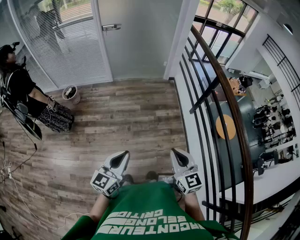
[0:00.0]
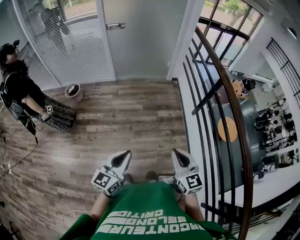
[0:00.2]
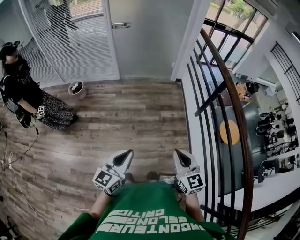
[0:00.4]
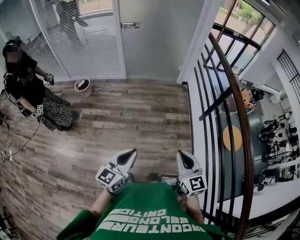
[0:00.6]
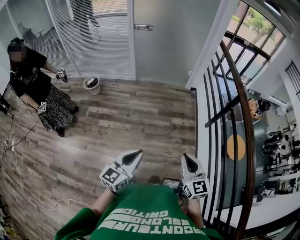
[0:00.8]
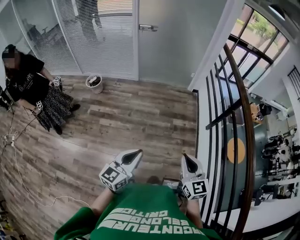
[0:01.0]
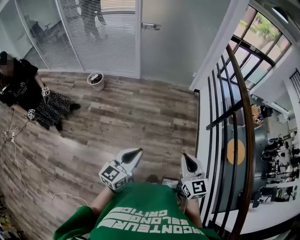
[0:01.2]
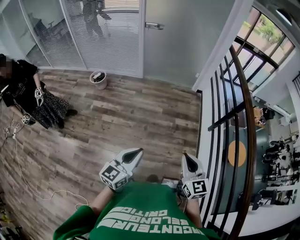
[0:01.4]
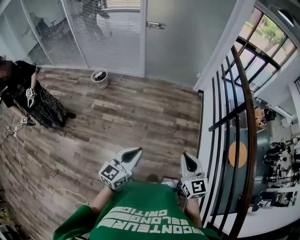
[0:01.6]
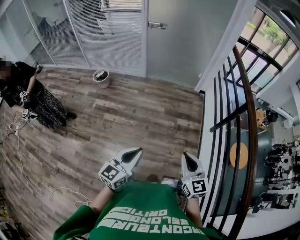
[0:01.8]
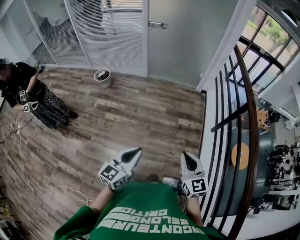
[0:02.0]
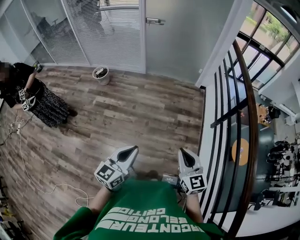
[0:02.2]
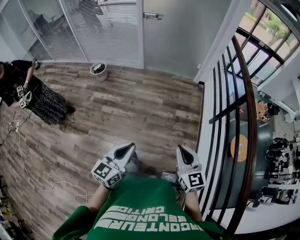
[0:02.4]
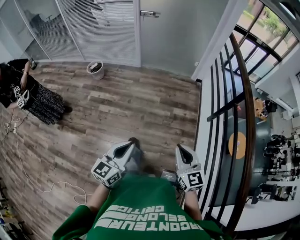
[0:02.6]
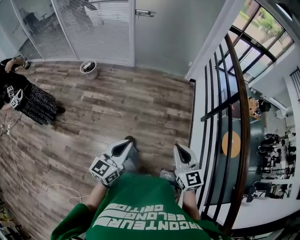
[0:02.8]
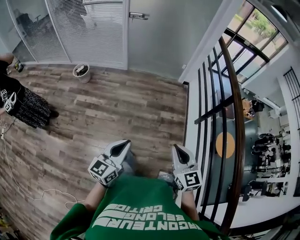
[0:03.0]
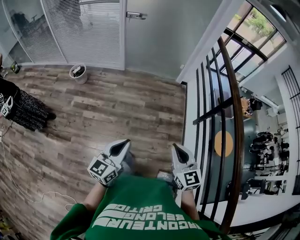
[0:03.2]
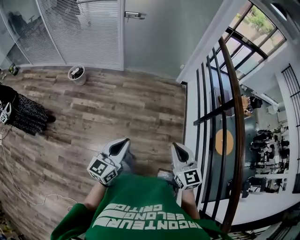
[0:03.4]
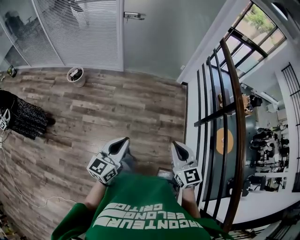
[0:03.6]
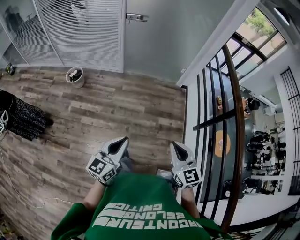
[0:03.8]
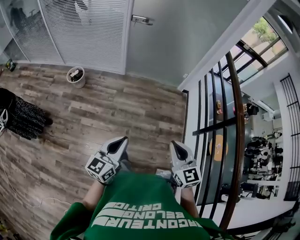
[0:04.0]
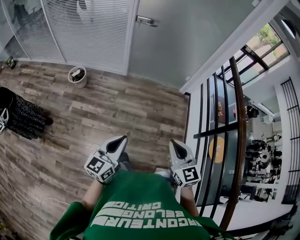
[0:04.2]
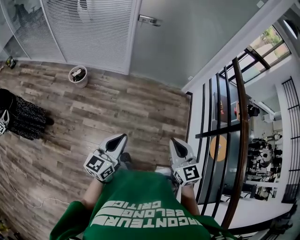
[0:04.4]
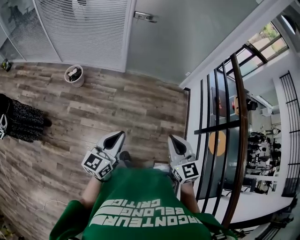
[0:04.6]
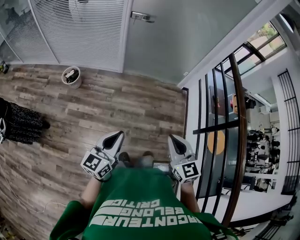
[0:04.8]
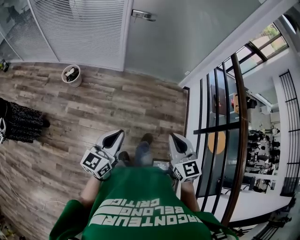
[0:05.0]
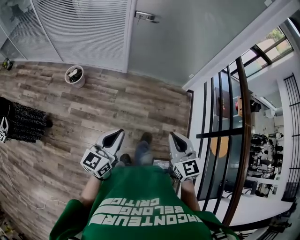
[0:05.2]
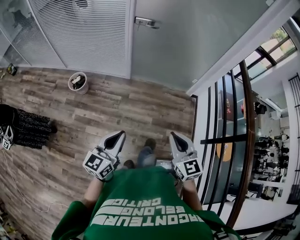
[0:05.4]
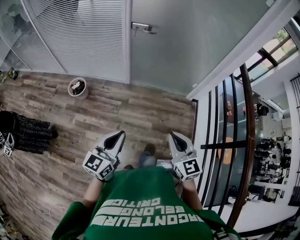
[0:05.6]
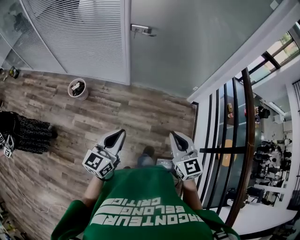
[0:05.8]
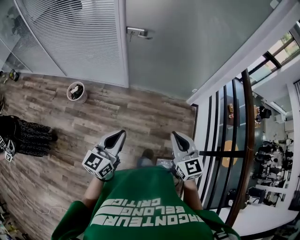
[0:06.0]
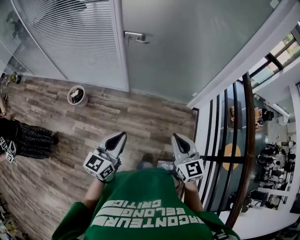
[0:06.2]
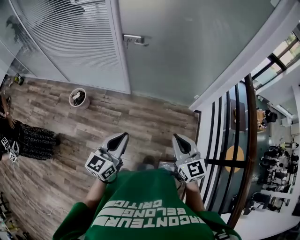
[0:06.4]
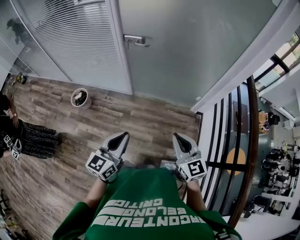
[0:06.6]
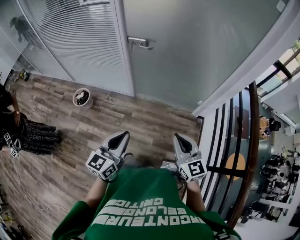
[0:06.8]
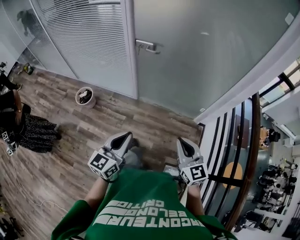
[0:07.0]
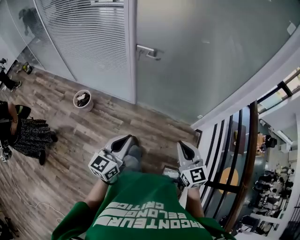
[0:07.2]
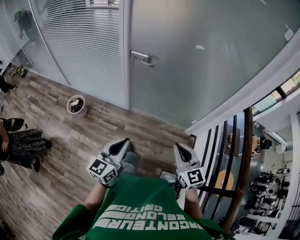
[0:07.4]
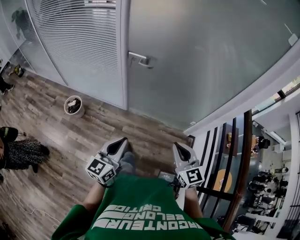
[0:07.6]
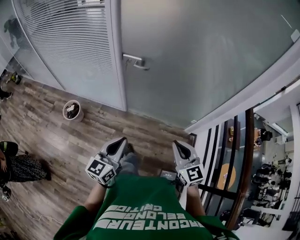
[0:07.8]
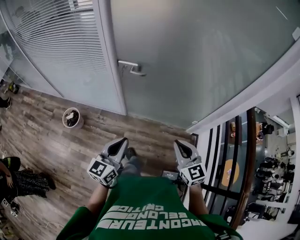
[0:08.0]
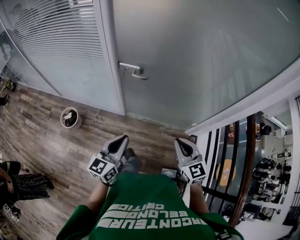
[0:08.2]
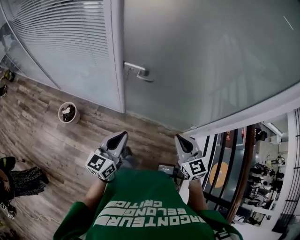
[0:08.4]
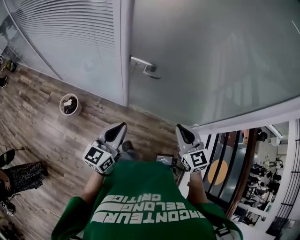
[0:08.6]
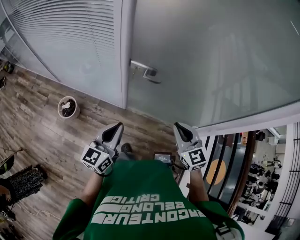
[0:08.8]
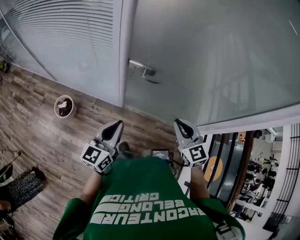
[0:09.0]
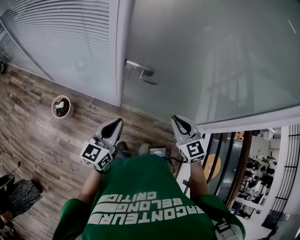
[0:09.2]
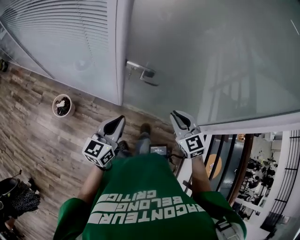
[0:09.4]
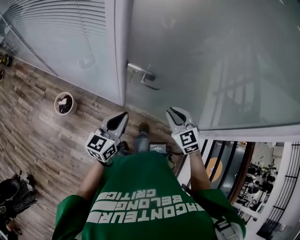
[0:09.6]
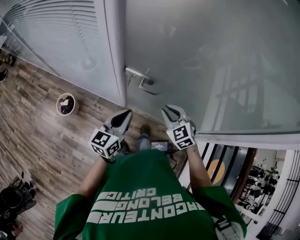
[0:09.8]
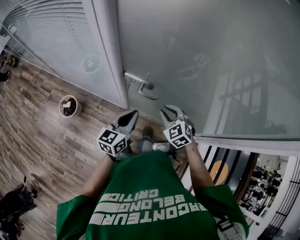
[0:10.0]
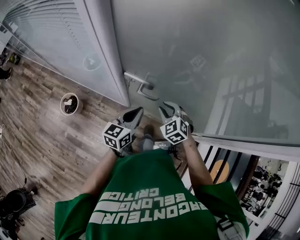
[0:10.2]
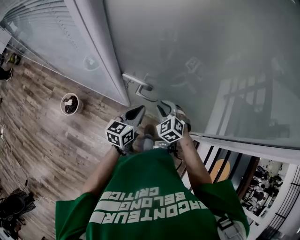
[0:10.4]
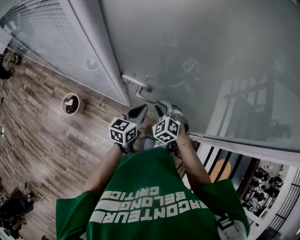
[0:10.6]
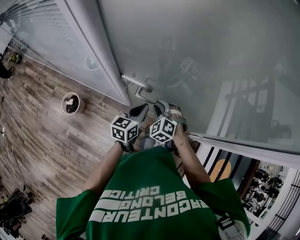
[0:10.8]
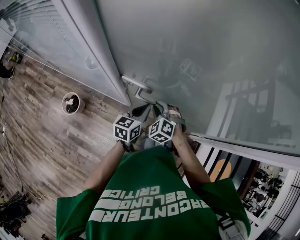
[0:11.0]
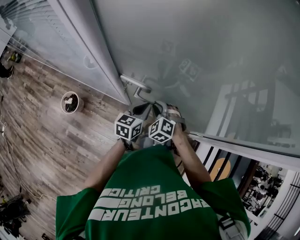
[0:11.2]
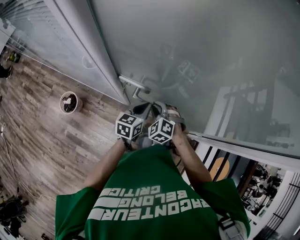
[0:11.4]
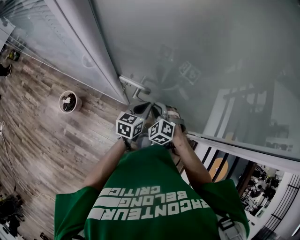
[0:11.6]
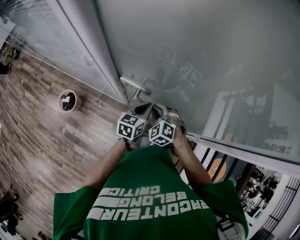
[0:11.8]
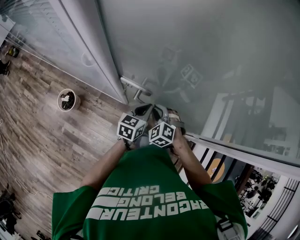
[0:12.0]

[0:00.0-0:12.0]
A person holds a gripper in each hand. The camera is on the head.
0:00.0 to 0:01.6: The grippers make only small movements.
0:01.6 to 0:03.0: The left gripper moves roughly 5 cm. Meanwhile the right gripper ends up about 5 cm from where it was.
0:03.0 to 0:04.4: The grippers both shift forward and to the left by approximately 25 cm.
0:04.4 to 0:06.0: The two grippers go approximately 25 cm forward.
0:06.0 to 0:07.6: The two grippers go about 15 cm forward.
0:07.6 to 0:09.0: Both grippers travel together forward, about 25 cm.
0:09.0 to 0:10.4: The left gripper shifts approximately 25 cm forward, to the right and downward. Meanwhile the right gripper is displaced forward and downward by some 25 cm, and turns by some 30 degrees.
0:10.4 to 0:12.0: The left gripper ends up approximately 10 cm from where it was.

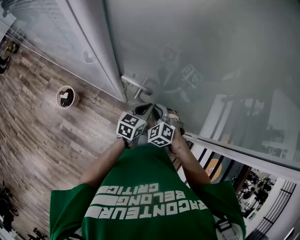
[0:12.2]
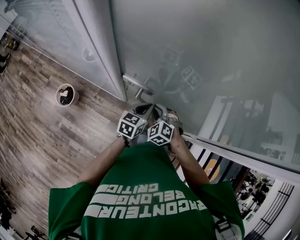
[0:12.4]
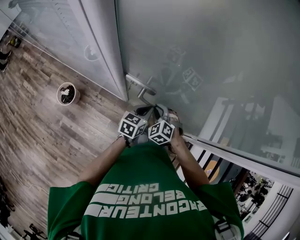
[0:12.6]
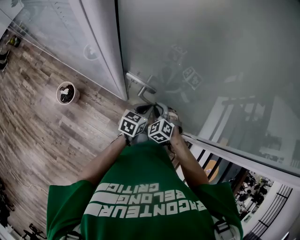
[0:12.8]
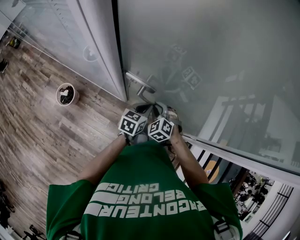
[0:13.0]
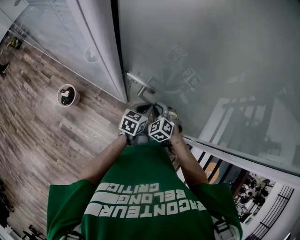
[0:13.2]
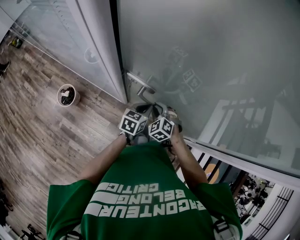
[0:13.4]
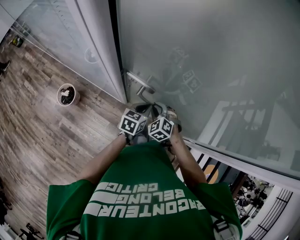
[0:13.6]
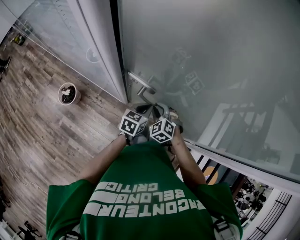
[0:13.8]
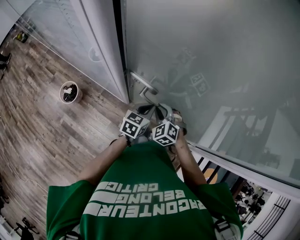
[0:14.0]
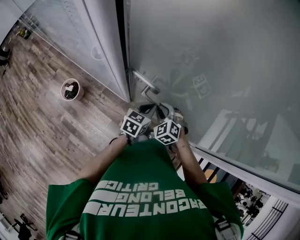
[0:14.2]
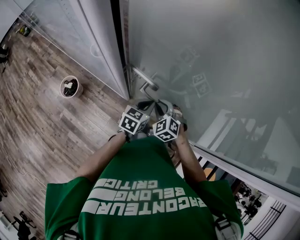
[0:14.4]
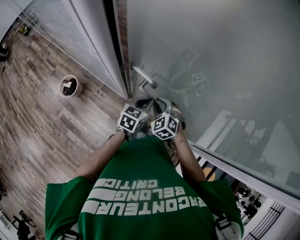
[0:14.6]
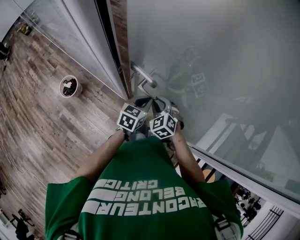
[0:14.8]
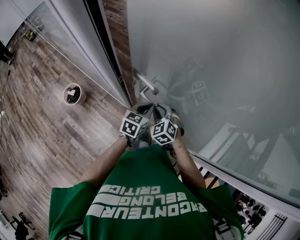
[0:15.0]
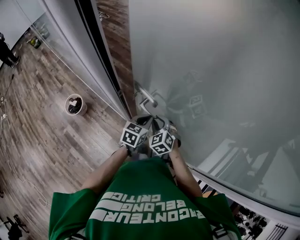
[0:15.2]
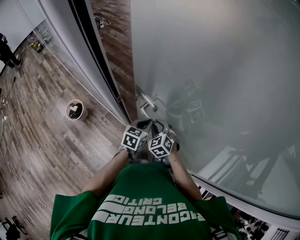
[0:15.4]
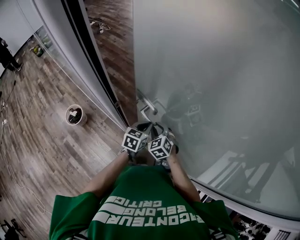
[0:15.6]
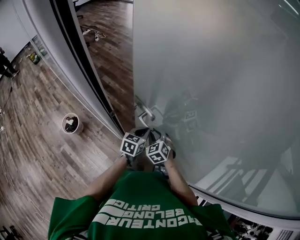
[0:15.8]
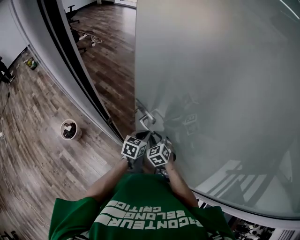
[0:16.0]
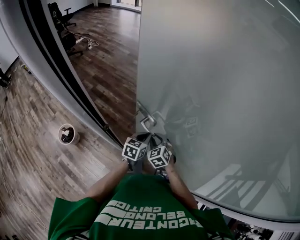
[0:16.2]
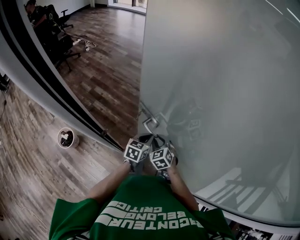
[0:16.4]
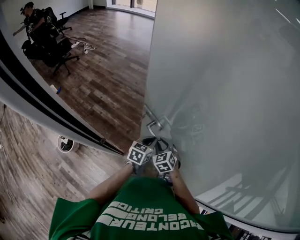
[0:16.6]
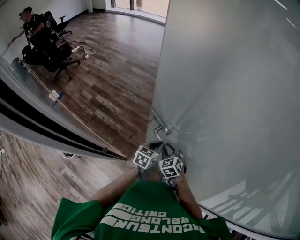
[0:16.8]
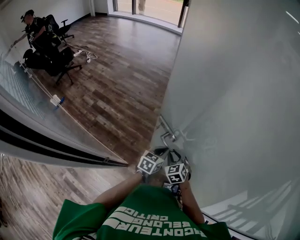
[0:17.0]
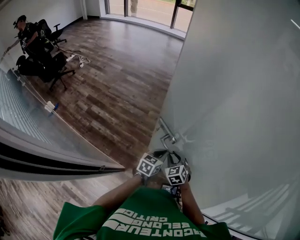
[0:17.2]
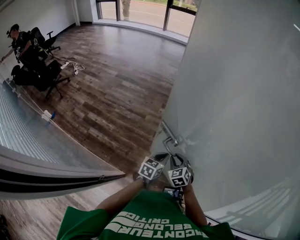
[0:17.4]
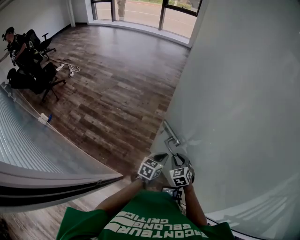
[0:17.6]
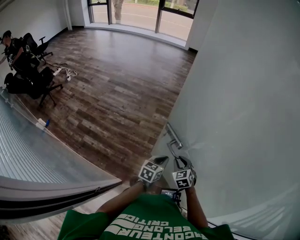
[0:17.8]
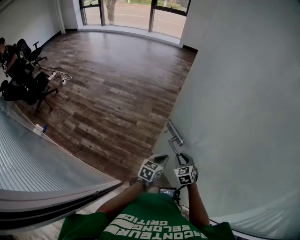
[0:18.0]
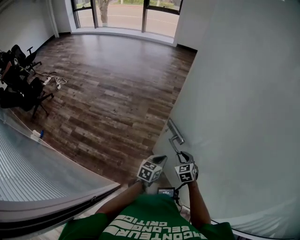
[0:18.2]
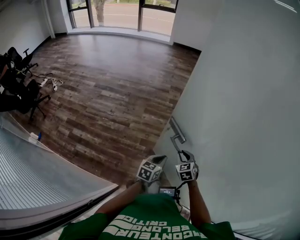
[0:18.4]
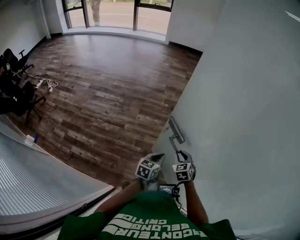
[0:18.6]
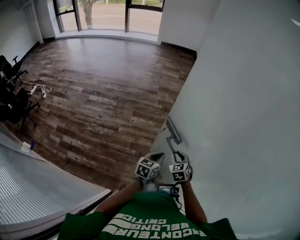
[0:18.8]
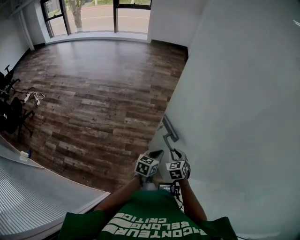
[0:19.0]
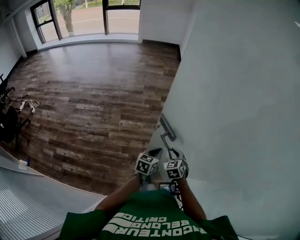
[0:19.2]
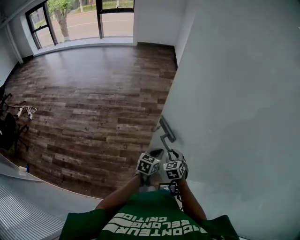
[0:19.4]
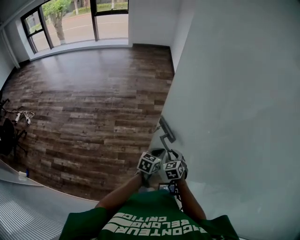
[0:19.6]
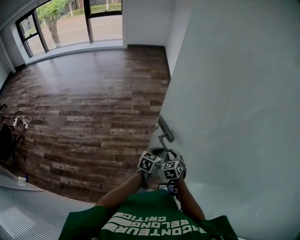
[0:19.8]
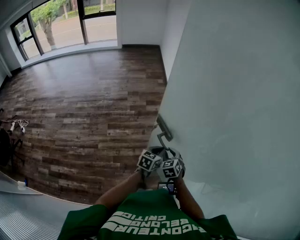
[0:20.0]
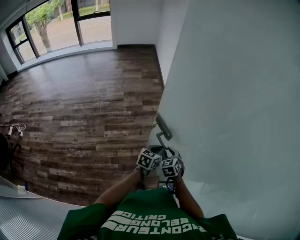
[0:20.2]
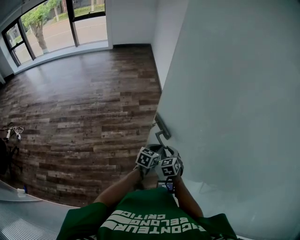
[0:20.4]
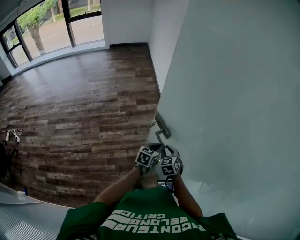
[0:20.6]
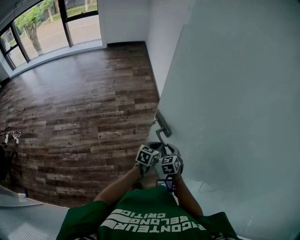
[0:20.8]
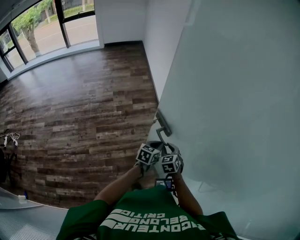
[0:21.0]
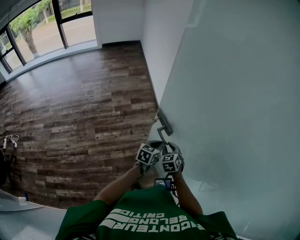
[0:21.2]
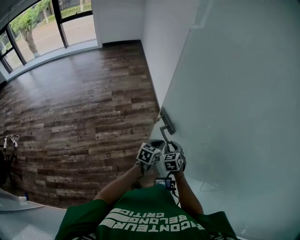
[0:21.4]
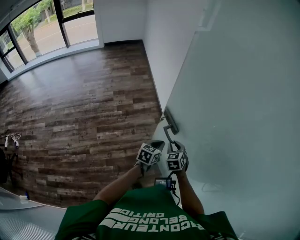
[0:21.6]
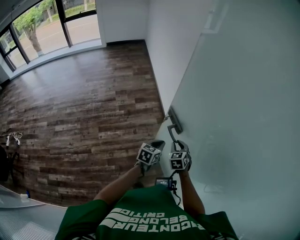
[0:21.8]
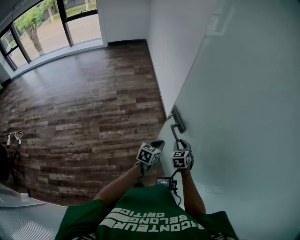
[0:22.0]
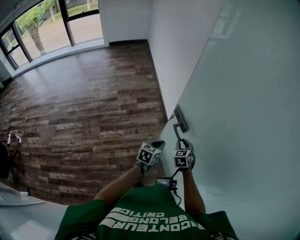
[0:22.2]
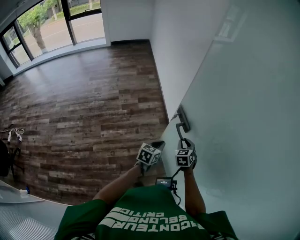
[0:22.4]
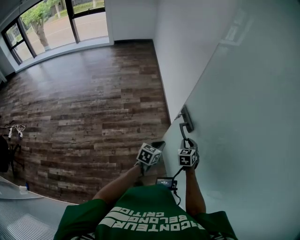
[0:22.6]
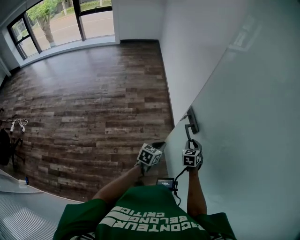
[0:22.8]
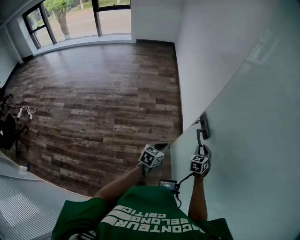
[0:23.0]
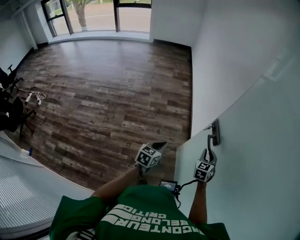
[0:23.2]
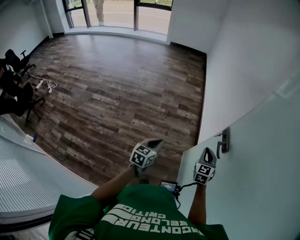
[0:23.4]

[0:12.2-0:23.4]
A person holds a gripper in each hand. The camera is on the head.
0:12.2 to 0:13.8: The grippers make only small movements.
0:13.8 to 0:15.4: The grippers both shift forward by some 5 cm.
0:15.4 to 0:17.0: The two grippers go some 20 cm forward and to the right.
0:17.0 to 0:18.6: The grippers both shift forward and to the right by roughly 25 cm. The right gripper swivels approximately 20 degrees.
0:18.6 to 0:20.2: Both grippers move forward and to the right, approximately 25 cm. The left gripper swivels approximately 20 degrees.
0:20.2 to 0:21.8: The right gripper shifts some 15 cm forward and to the right. The left gripper goes about 5 cm forward.
0:21.8 to 0:23.4: The left gripper goes about 25 cm to the left and backward, and rotates approximately 30 degrees, while the right gripper is displaced upward and to the left by roughly 15 cm.

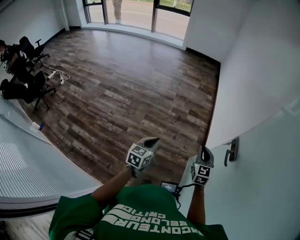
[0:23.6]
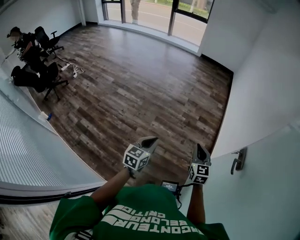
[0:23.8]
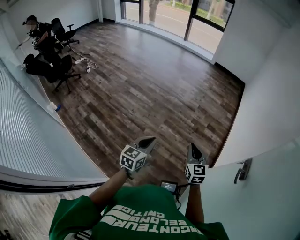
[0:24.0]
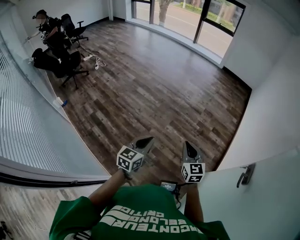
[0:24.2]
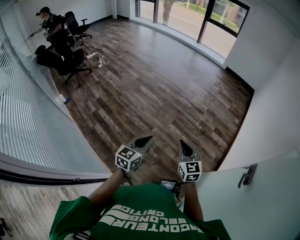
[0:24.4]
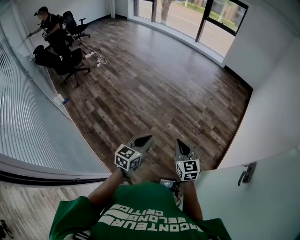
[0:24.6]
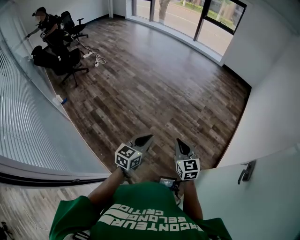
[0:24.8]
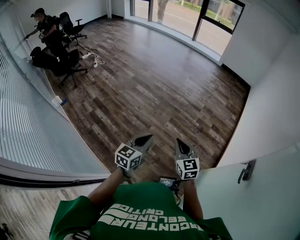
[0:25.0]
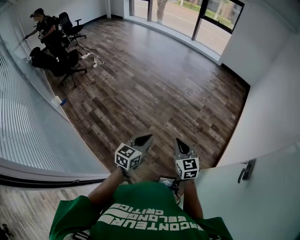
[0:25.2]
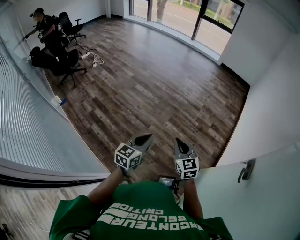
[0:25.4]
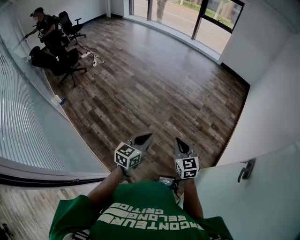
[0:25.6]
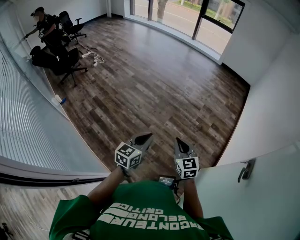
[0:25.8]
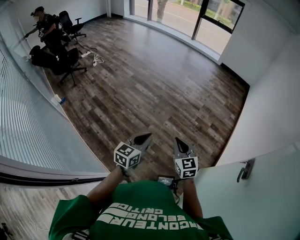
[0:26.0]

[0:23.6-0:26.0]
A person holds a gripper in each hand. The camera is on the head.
0:23.6 to 0:24.8: The right gripper moves some 30 cm, and turns by some 40 degrees, while the left gripper ends up some 20 cm from where it was, and rotates about 20 degrees.
0:24.8 to 0:26.0: Neither gripper changes place.
